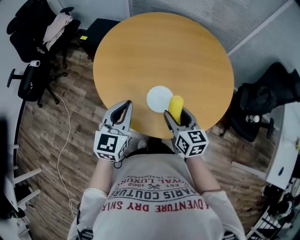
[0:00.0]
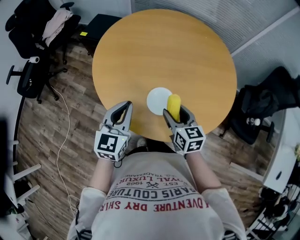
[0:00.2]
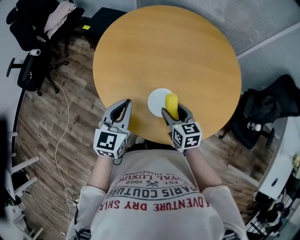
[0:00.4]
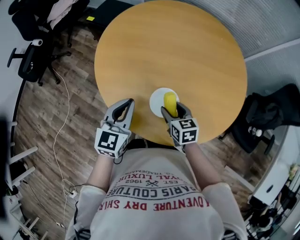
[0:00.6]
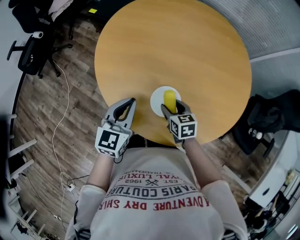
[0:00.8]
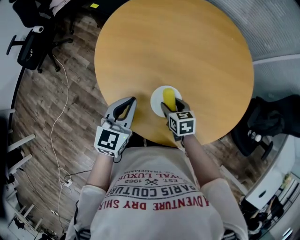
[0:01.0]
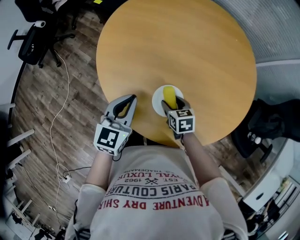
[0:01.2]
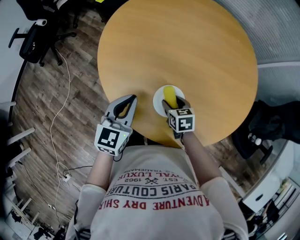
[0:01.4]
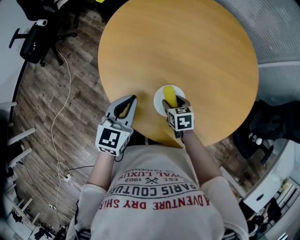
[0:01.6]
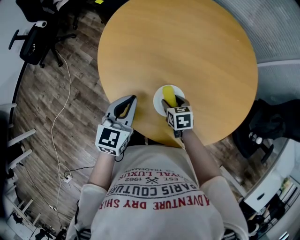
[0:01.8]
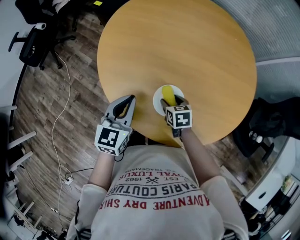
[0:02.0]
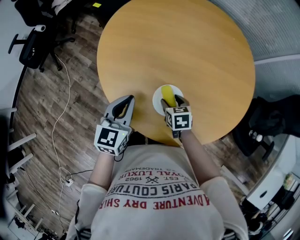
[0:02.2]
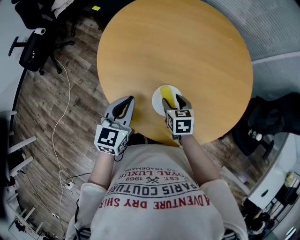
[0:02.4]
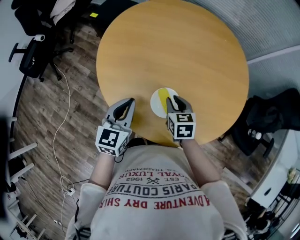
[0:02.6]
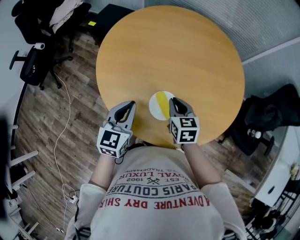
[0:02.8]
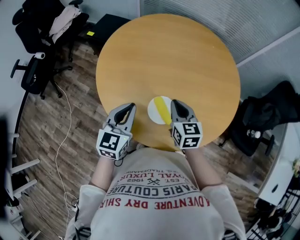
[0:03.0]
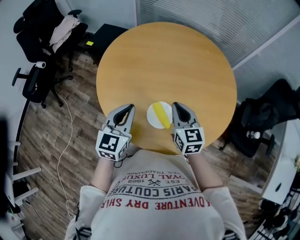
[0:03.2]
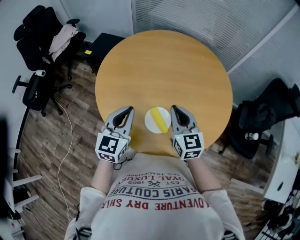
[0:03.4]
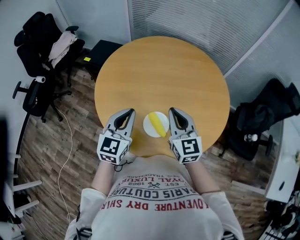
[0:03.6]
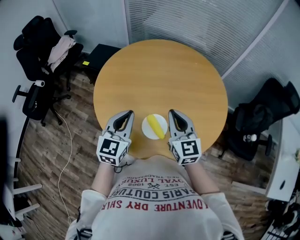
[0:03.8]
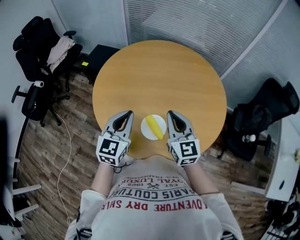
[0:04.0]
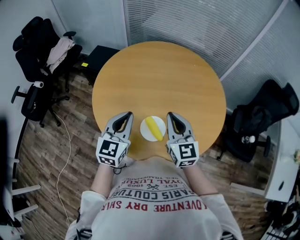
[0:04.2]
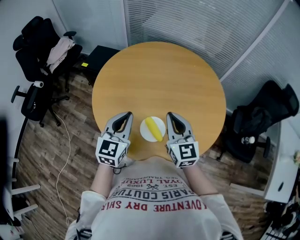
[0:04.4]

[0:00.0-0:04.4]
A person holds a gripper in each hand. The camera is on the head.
0:00.0 to 0:01.4: The right gripper is displaced downward and forward by some 20 cm, and rotates about 40 degrees. The left gripper moves downward and forward, about 10 cm.
0:01.4 to 0:03.0: The left gripper moves upward, some 5 cm. Meanwhile the right gripper shifts approximately 20 cm upward, turns by approximately 30 degrees, and closes its fingers.
0:03.0 to 0:04.4: The right gripper heads upward, covering approximately 10 cm, and swivels about 20 degrees. The left gripper travels upward by about 5 cm.

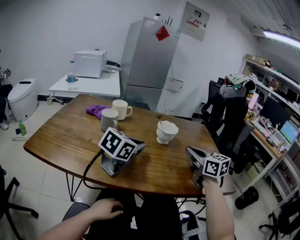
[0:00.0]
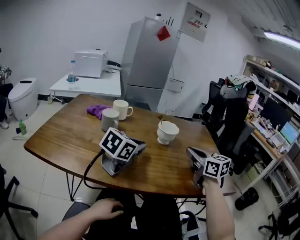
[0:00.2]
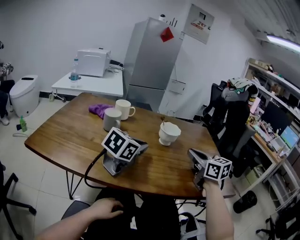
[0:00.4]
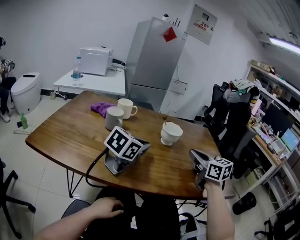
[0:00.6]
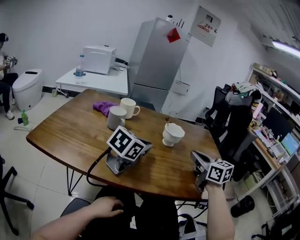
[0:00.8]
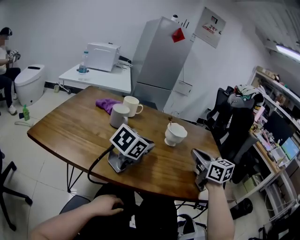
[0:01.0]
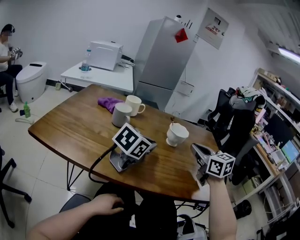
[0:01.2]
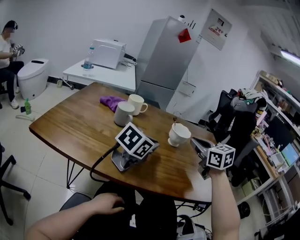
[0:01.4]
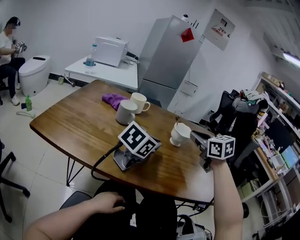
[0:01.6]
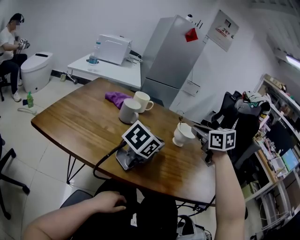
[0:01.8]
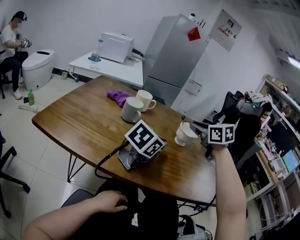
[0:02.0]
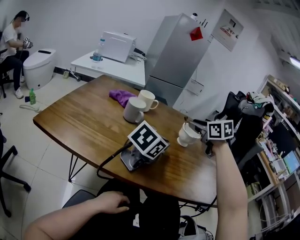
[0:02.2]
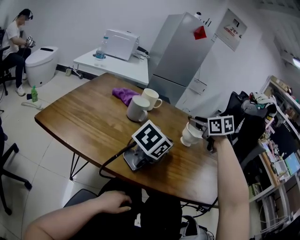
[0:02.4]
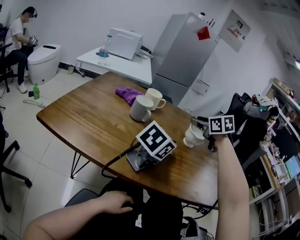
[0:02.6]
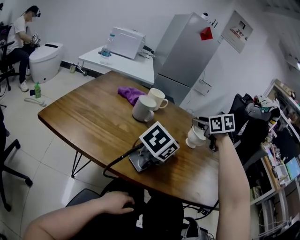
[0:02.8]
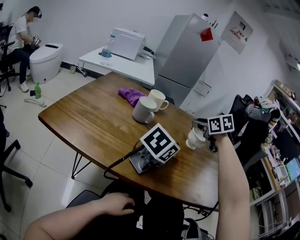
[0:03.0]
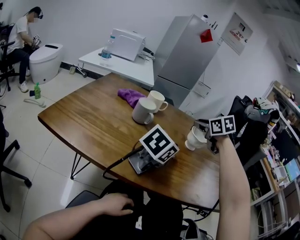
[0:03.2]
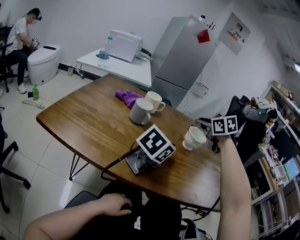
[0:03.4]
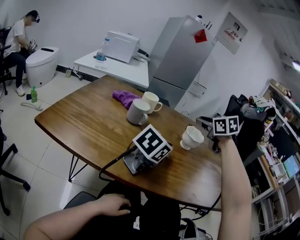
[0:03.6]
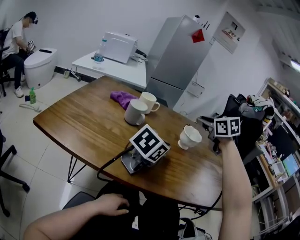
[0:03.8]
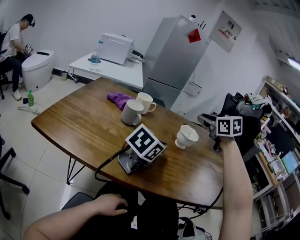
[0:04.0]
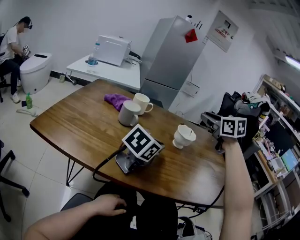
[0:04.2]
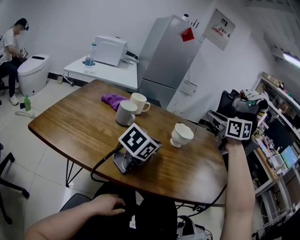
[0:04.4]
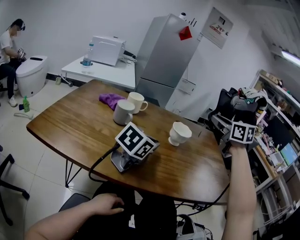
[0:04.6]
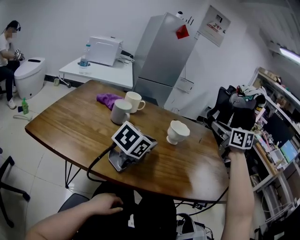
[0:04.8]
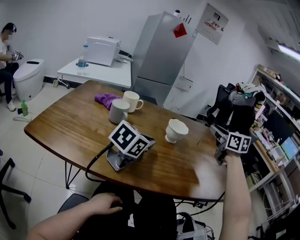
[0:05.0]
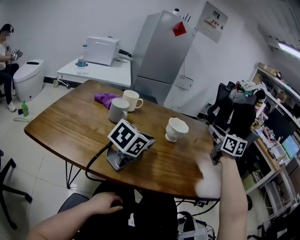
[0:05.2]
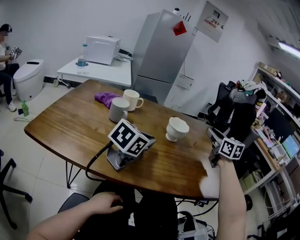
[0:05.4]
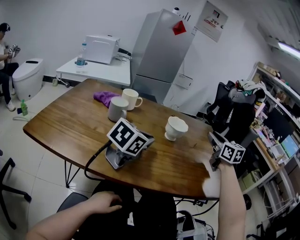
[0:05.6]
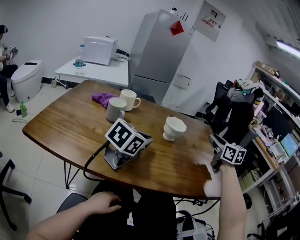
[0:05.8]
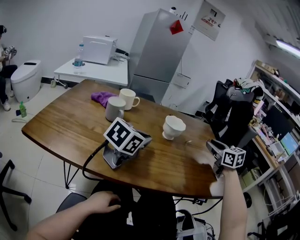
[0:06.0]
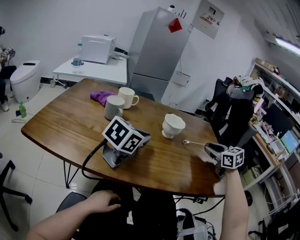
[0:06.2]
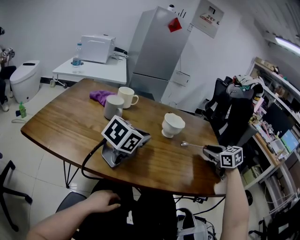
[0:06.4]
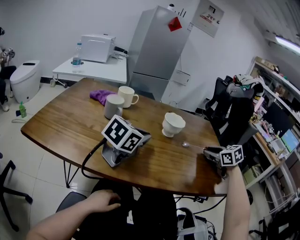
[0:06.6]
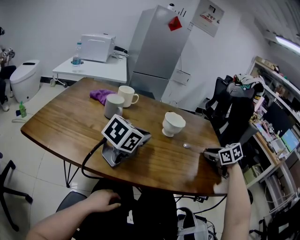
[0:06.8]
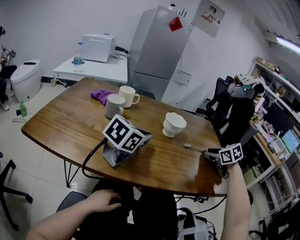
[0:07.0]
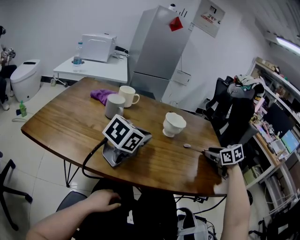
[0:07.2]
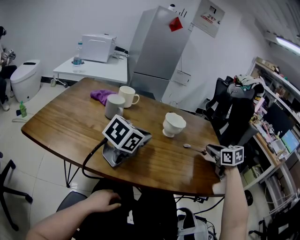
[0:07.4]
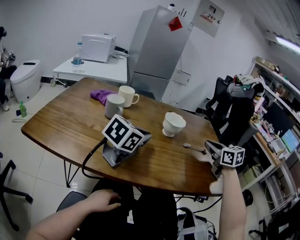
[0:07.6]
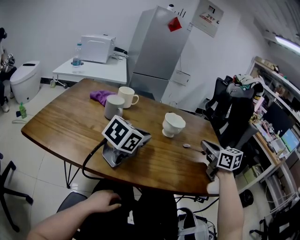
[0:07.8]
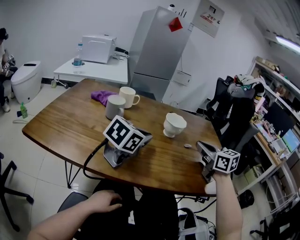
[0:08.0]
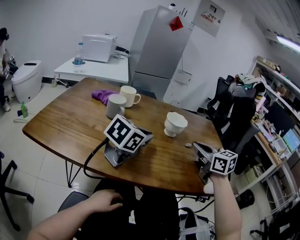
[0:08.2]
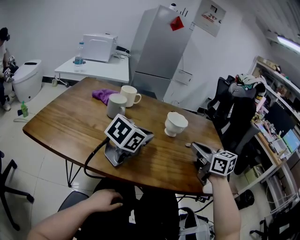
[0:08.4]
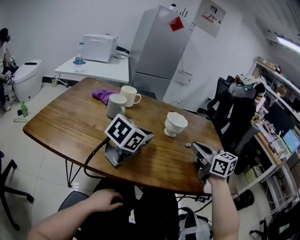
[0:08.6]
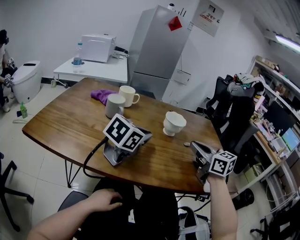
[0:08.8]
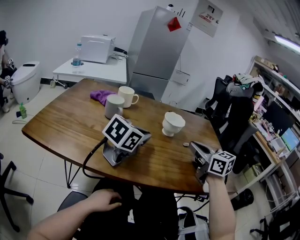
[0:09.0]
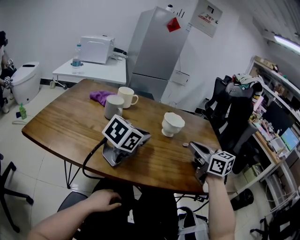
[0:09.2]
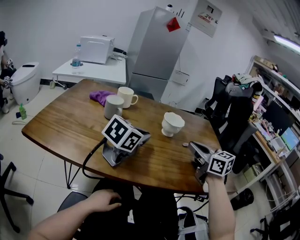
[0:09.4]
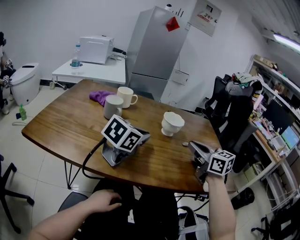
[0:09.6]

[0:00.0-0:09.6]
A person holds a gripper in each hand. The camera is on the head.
0:00.0 to 0:01.6: The right gripper heads to the left, upward and forward, covering some 10 cm.
0:01.6 to 0:03.2: The right gripper is displaced forward and to the left by some 10 cm, and opens.
0:03.2 to 0:04.8: The right gripper is displaced to the right and upward by roughly 20 cm, and rotates about 30 degrees.
0:04.8 to 0:06.4: The right gripper travels downward and to the right by some 20 cm, and swivels some 20 degrees.
0:06.4 to 0:08.0: The right gripper moves to the left, some 10 cm, rotates some 20 degrees, and closes up.
0:08.0 to 0:09.6: The grippers stay close to where they were, moving slightly.

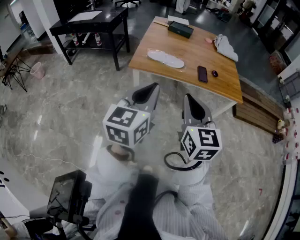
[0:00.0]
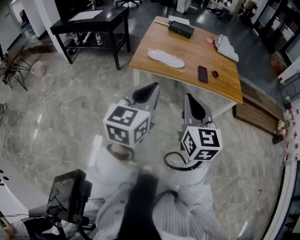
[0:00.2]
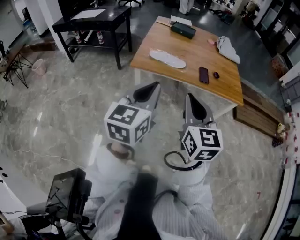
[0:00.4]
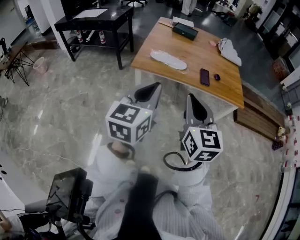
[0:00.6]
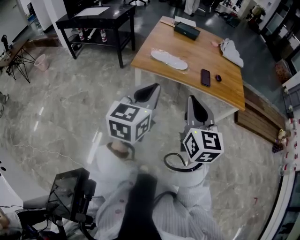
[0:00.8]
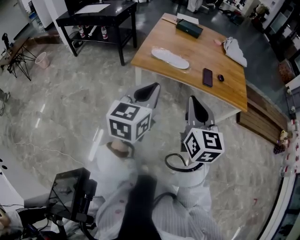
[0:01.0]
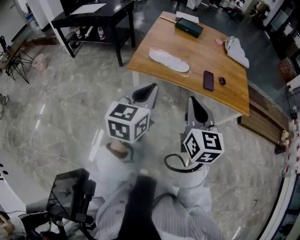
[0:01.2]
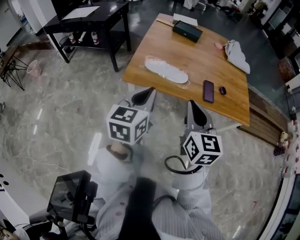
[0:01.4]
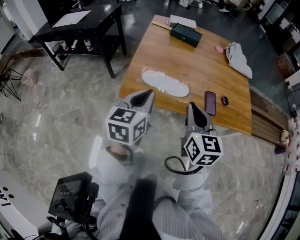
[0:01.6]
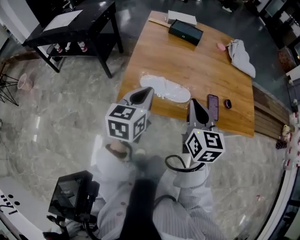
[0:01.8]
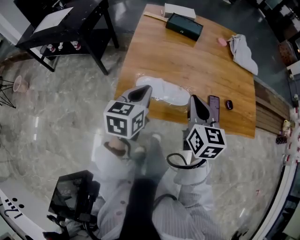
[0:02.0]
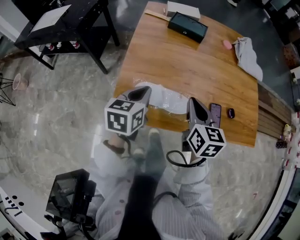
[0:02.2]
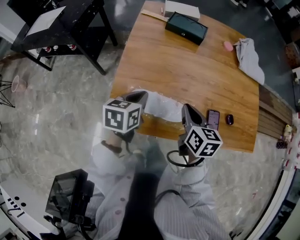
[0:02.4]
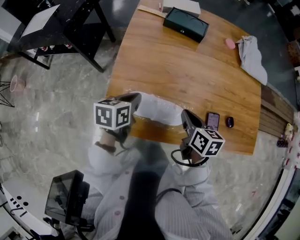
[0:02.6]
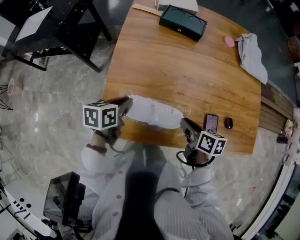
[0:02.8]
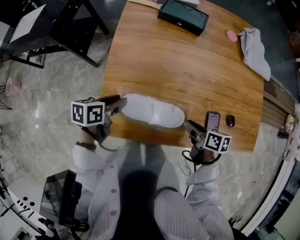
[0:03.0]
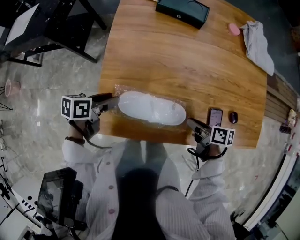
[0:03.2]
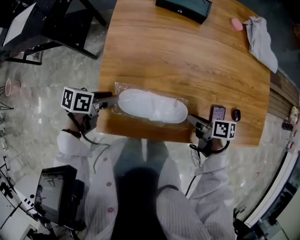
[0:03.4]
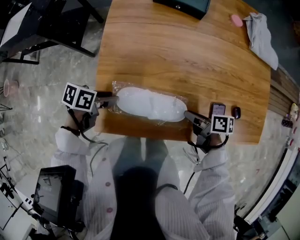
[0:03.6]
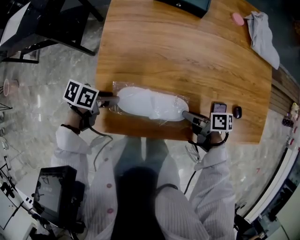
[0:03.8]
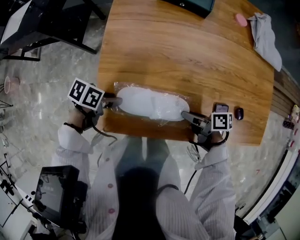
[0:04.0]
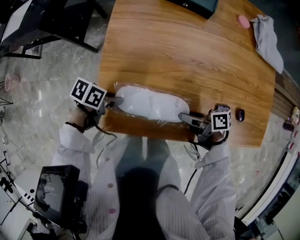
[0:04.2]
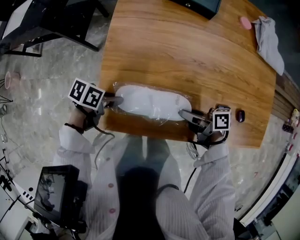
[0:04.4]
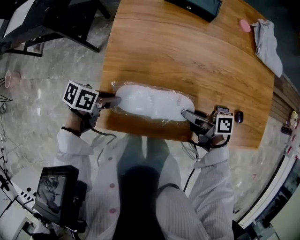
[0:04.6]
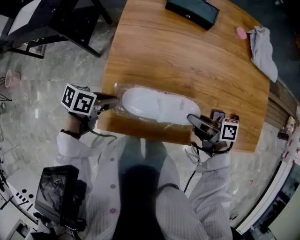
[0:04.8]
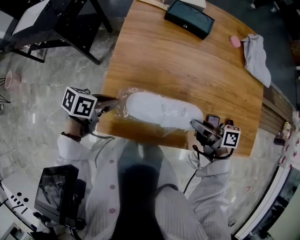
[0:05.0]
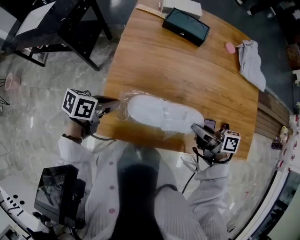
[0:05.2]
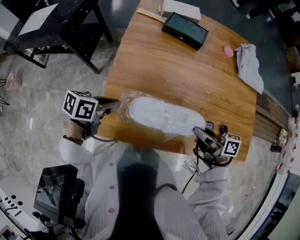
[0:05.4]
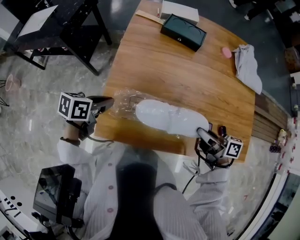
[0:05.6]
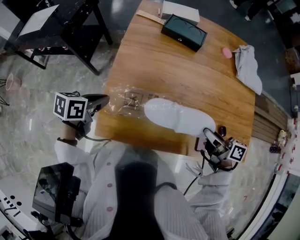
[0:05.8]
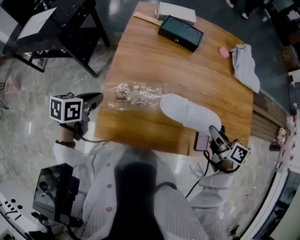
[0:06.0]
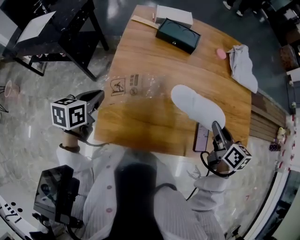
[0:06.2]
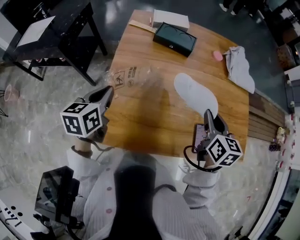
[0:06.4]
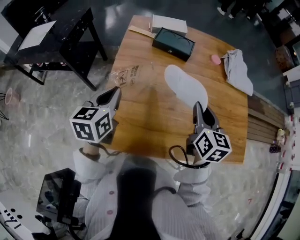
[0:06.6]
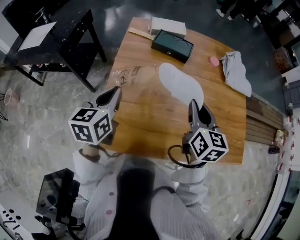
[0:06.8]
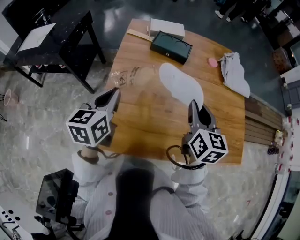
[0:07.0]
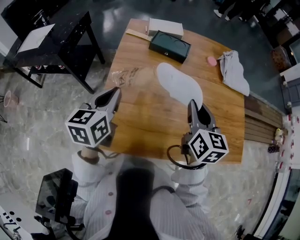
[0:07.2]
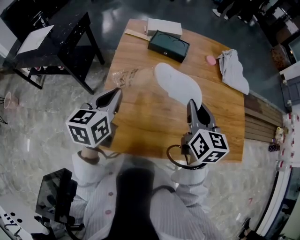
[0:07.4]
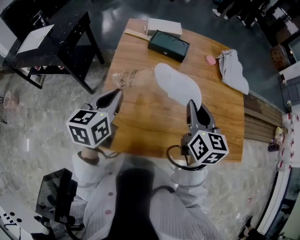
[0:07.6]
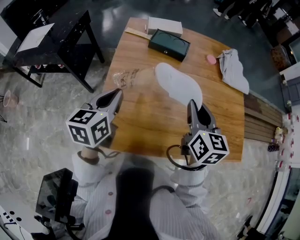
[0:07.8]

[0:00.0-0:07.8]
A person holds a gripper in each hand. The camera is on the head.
0:00.0 to 0:01.6: Both grippers move forward, approximately 30 cm.
0:01.6 to 0:03.2: The left gripper heads forward and downward, covering about 35 cm, turns by approximately 50 degrees, and opens up. The right gripper is displaced downward and forward by approximately 35 cm, changes its angle by about 70 degrees, and opens up.
0:03.2 to 0:04.6: The right gripper shifts by about 5 cm, and rotates about 20 degrees.
0:04.6 to 0:06.2: The two grippers go about 15 cm upward. The left gripper turns by about 40 degrees, and closes up. The right gripper swivels roughly 60 degrees.
0:06.2 to 0:07.8: The left gripper moves upward and to the right, roughly 10 cm, while the right gripper goes approximately 15 cm to the left and upward, and changes its angle by roughly 20 degrees.

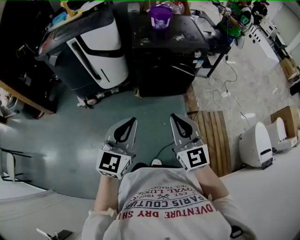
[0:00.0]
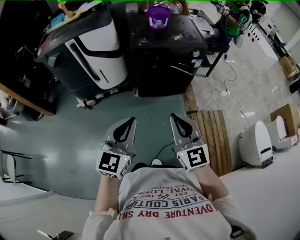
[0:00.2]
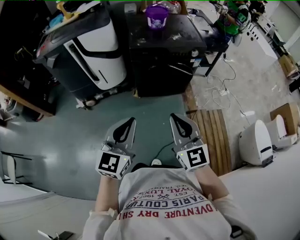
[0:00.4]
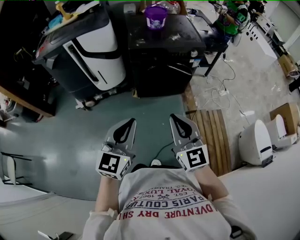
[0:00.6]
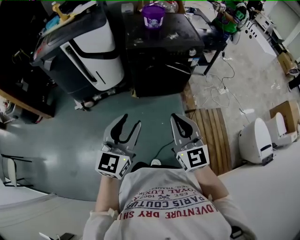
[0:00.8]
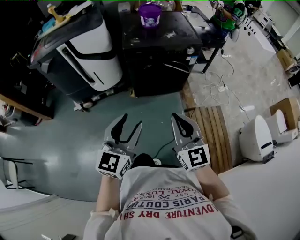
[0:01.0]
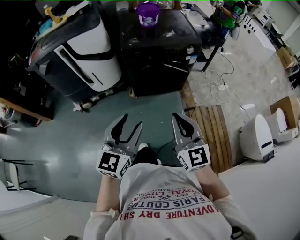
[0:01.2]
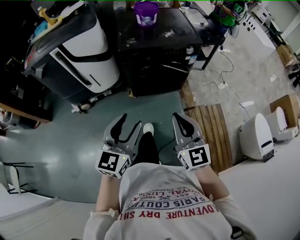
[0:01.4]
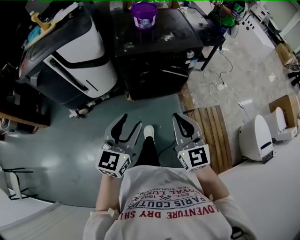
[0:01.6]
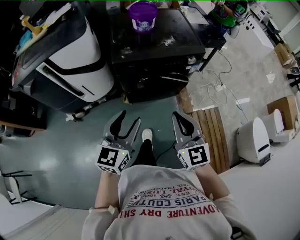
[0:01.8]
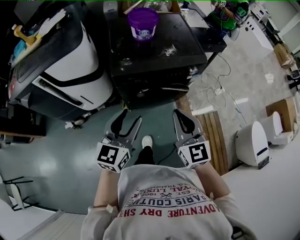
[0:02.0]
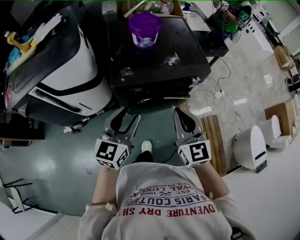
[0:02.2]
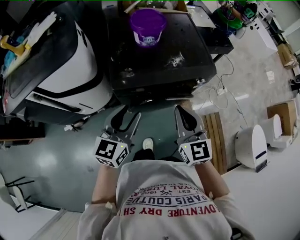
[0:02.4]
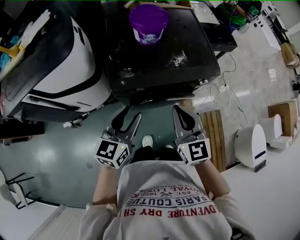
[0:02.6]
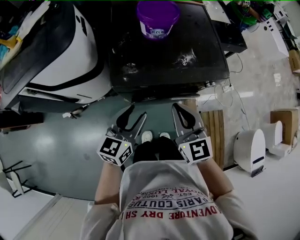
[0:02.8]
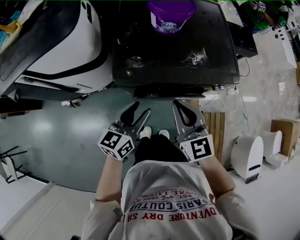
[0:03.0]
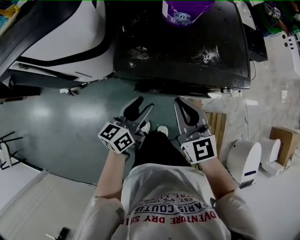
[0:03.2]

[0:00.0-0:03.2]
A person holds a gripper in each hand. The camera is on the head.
0:00.0 to 0:01.6: The right gripper is displaced forward and to the right by about 15 cm. The left gripper goes approximately 15 cm forward, and opens.
0:01.6 to 0:03.2: The left gripper is displaced forward and downward by roughly 40 cm, and turns by roughly 40 degrees. The right gripper moves forward, approximately 35 cm, and rotates about 20 degrees.
